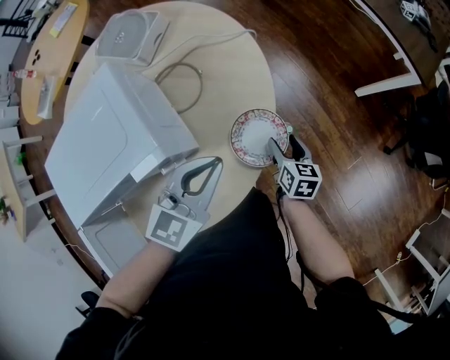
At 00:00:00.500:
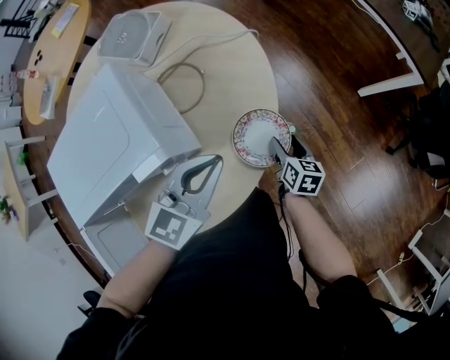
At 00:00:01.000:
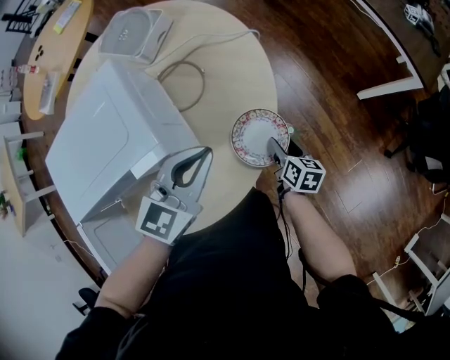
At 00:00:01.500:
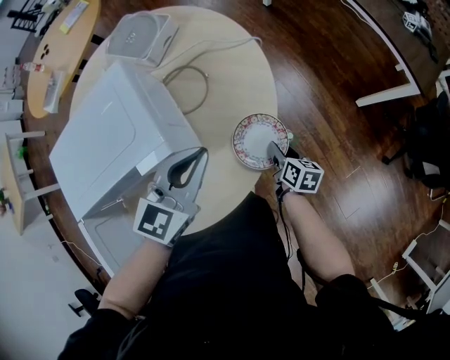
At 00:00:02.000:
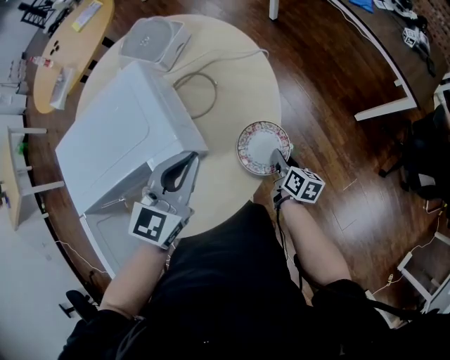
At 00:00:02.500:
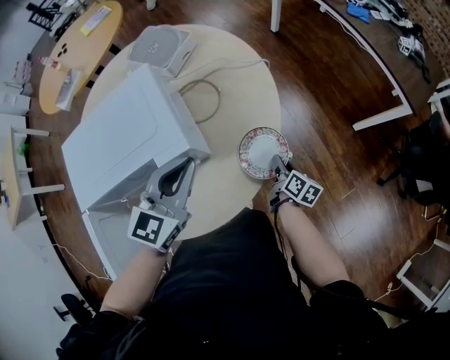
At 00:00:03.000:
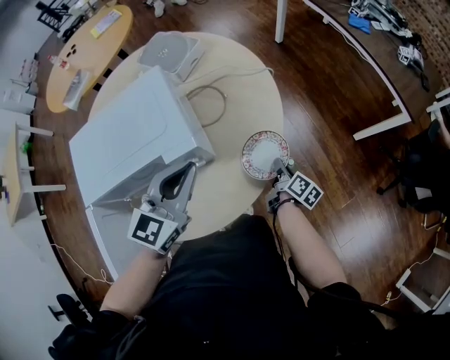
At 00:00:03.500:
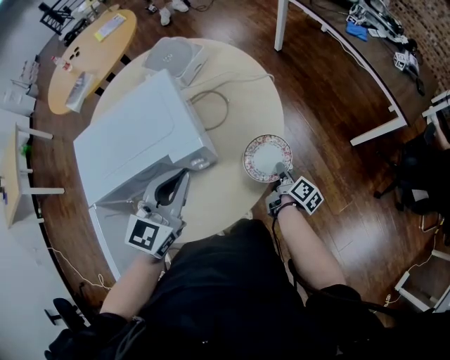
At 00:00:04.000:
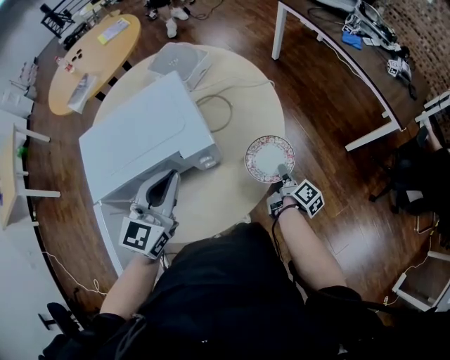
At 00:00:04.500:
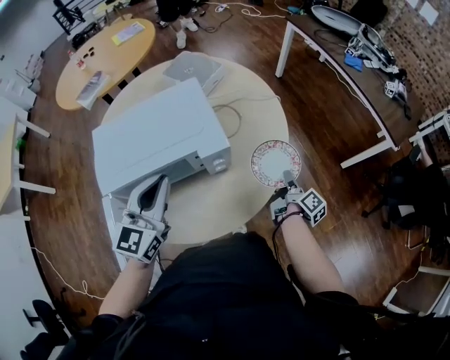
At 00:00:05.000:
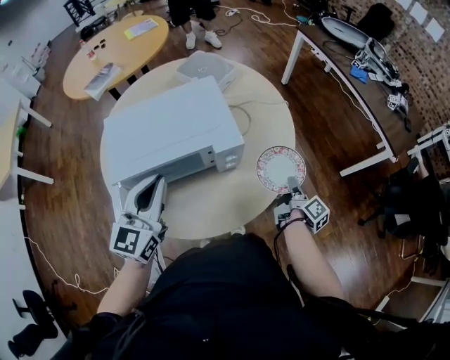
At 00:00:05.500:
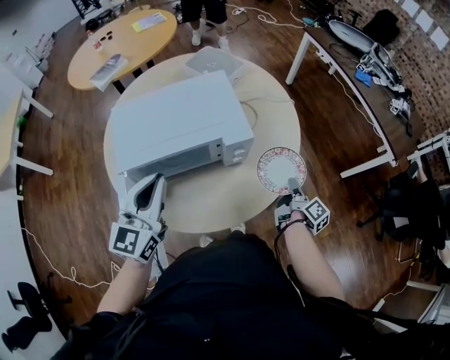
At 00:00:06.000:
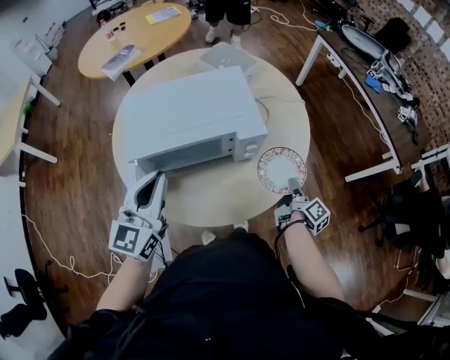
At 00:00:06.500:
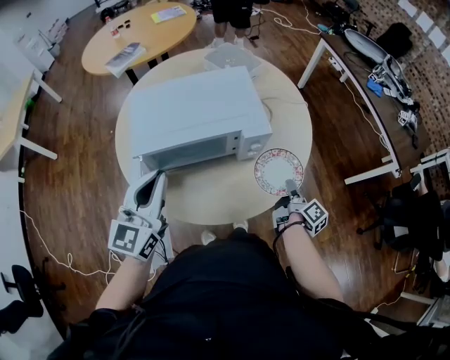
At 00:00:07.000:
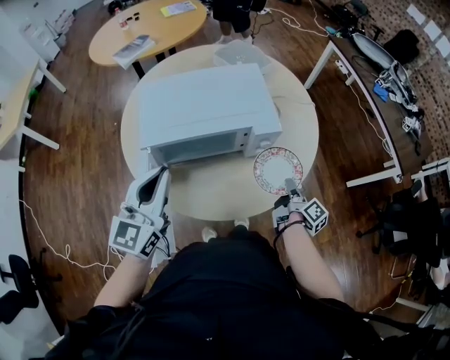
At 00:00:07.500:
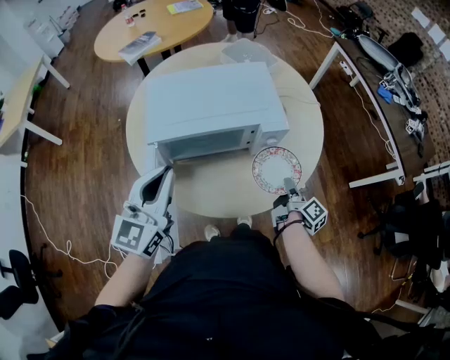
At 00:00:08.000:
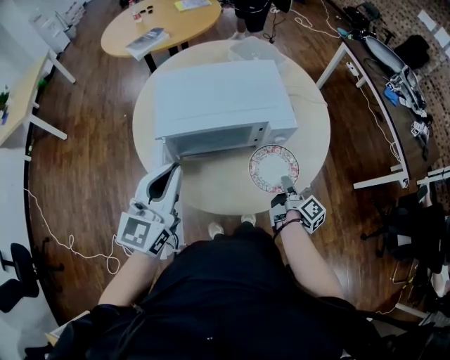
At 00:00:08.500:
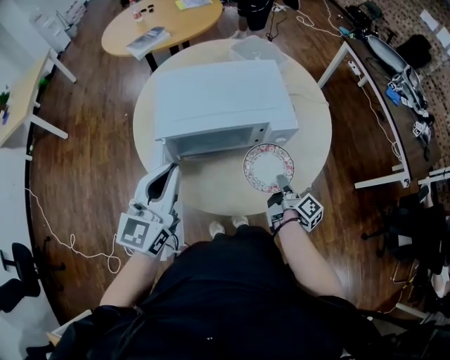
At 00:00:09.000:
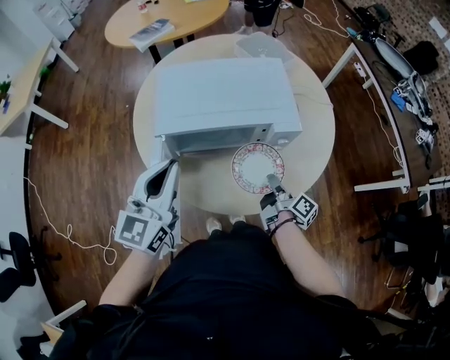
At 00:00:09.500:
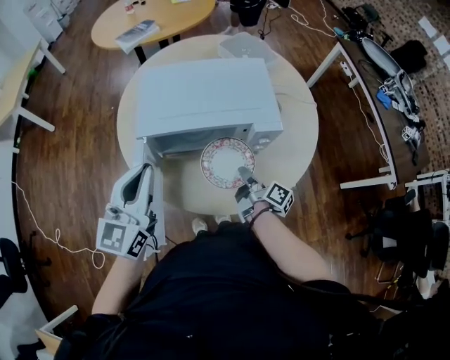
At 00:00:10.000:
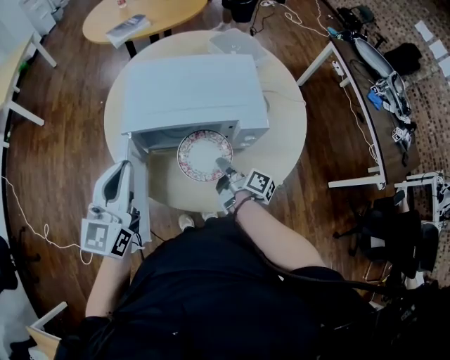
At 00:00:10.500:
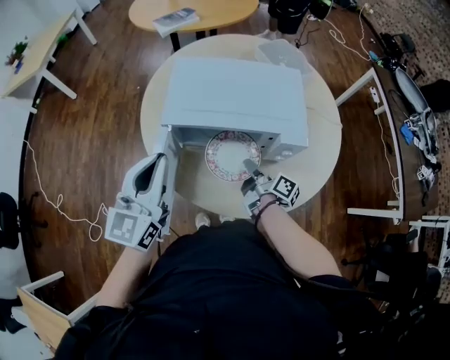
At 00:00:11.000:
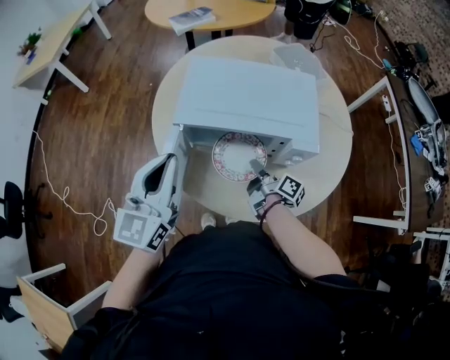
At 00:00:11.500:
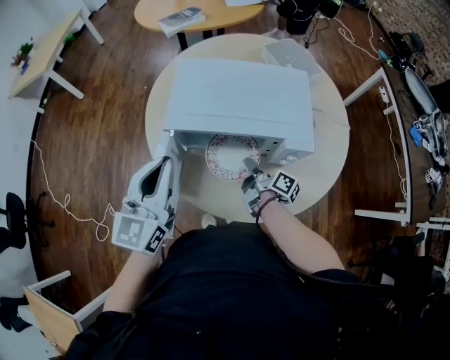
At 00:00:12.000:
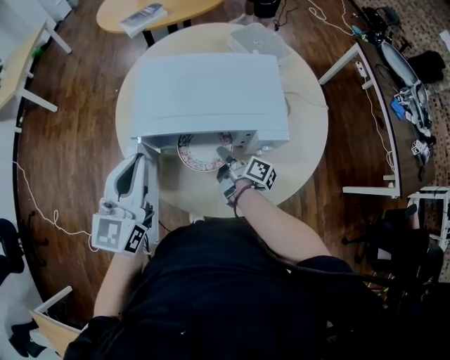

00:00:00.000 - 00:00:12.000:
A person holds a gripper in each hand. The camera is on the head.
00:00:00.000 - 00:00:02.000: The left gripper moves to the left, some 5 cm. The right gripper closes up.
00:00:02.000 - 00:00:04.000: The right gripper changes its angle by about 30 degrees; the left gripper goes approximately 10 cm to the left and backward.
00:00:04.000 - 00:00:06.000: The left gripper moves to the left and backward, some 15 cm. Meanwhile the right gripper shifts about 10 cm upward, to the left and backward.
00:00:06.000 - 00:00:08.000: The right gripper moves to the left, approximately 10 cm.
00:00:08.000 - 00:00:10.000: The right gripper shifts about 15 cm to the left and forward, and changes its angle by some 30 degrees.
00:00:10.000 - 00:00:12.000: The right gripper moves forward, approximately 5 cm.

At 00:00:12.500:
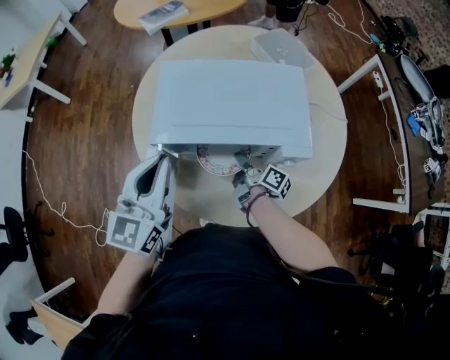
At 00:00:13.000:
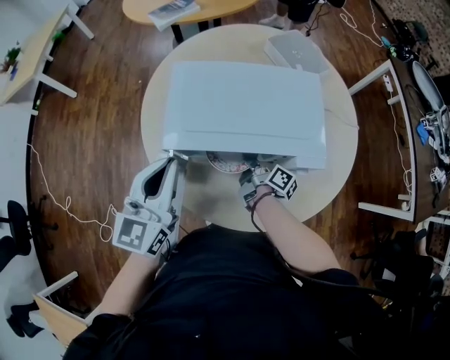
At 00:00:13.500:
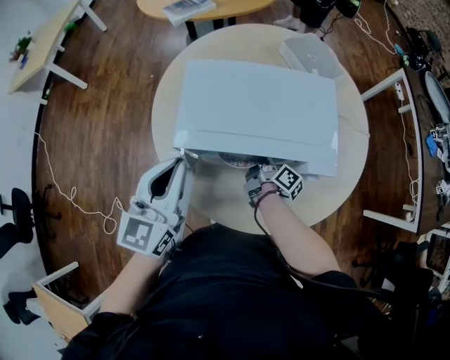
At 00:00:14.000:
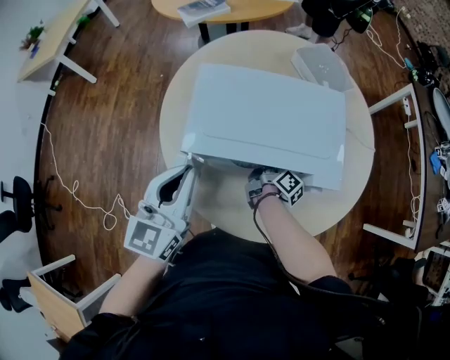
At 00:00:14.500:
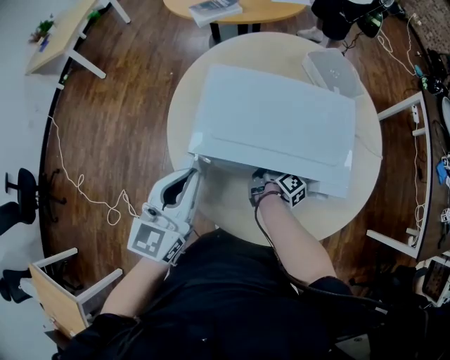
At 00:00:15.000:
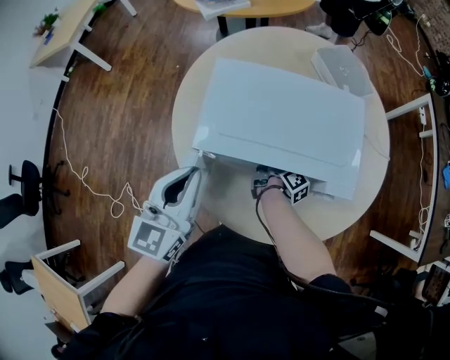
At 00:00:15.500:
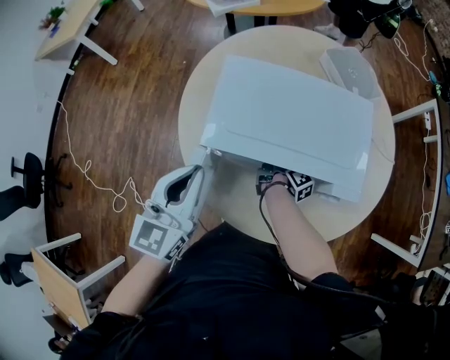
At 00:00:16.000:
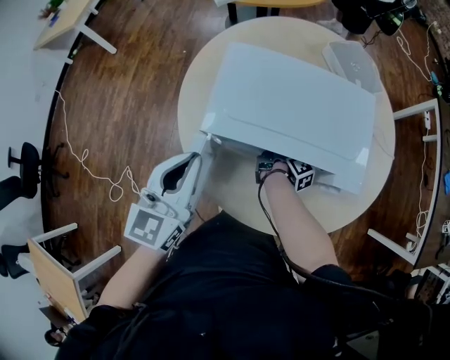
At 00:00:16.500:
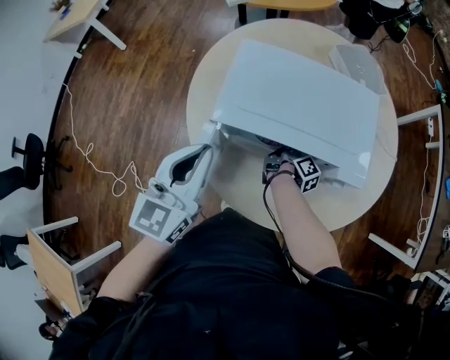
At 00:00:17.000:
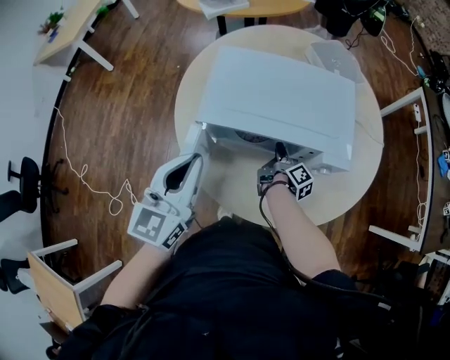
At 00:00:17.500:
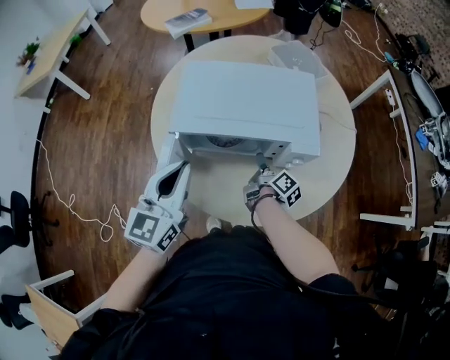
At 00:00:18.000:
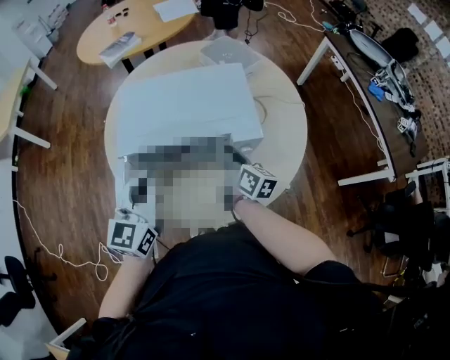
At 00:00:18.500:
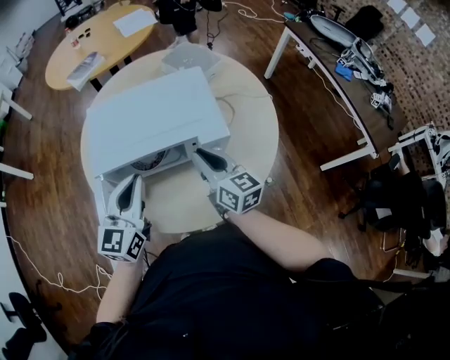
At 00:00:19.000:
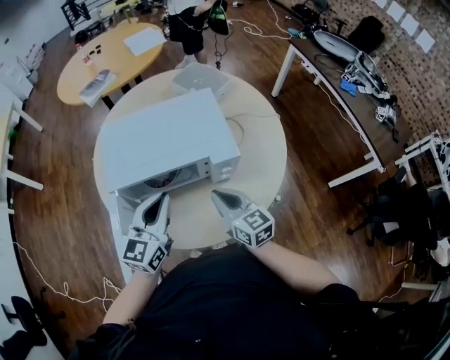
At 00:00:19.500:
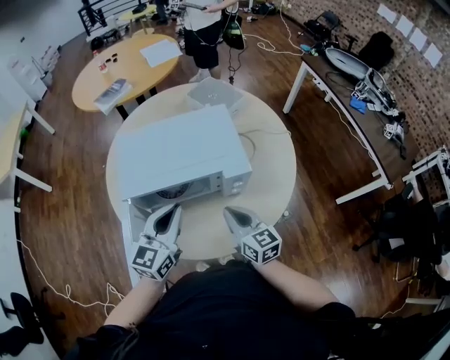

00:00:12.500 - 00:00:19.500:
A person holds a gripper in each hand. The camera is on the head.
00:00:12.500 - 00:00:14.500: The right gripper travels forward by about 5 cm.
00:00:14.500 - 00:00:16.000: The grippers make only small movements.
00:00:16.000 - 00:00:17.500: The right gripper moves backward, to the right and upward, some 10 cm; the left gripper moves roughly 5 cm.
00:00:17.500 - 00:00:19.500: The left gripper shifts roughly 10 cm to the right. Meanwhile the right gripper is displaced upward and backward by roughly 15 cm, rolls counterclockwise, seen from behind, by some 60 degrees, and closes up.

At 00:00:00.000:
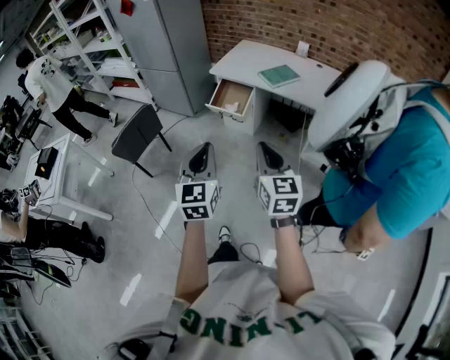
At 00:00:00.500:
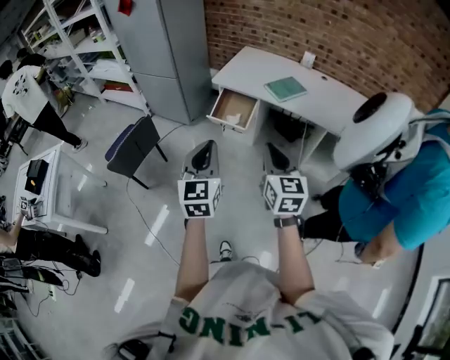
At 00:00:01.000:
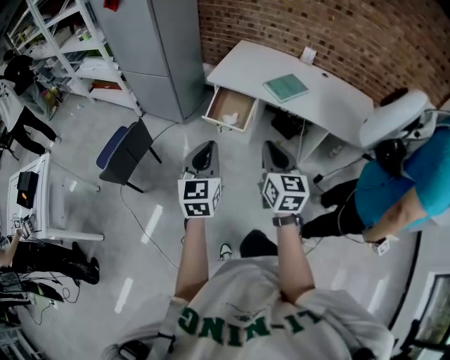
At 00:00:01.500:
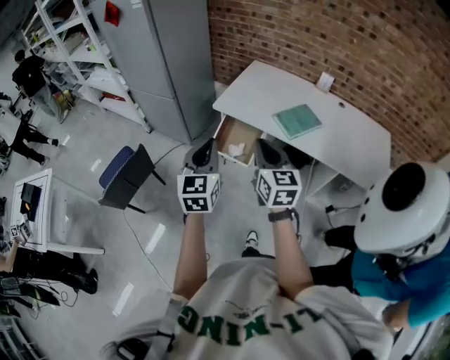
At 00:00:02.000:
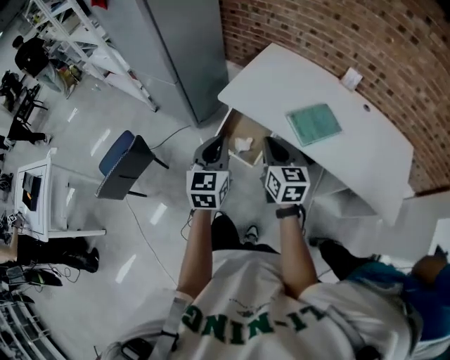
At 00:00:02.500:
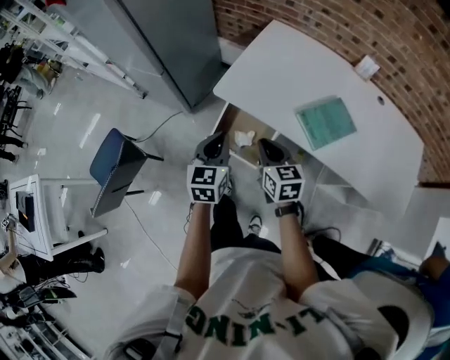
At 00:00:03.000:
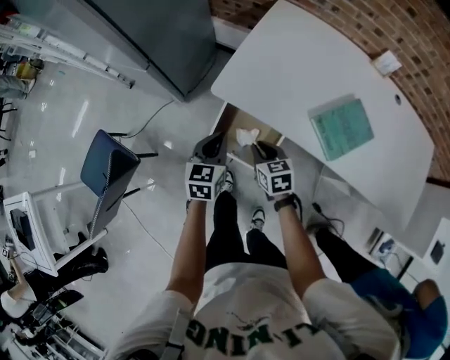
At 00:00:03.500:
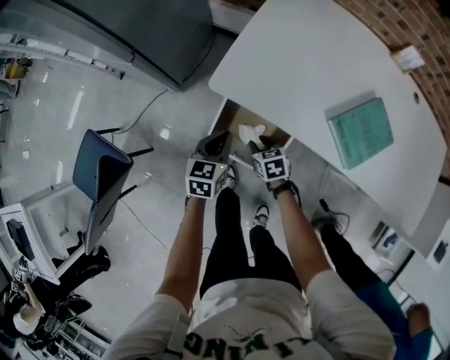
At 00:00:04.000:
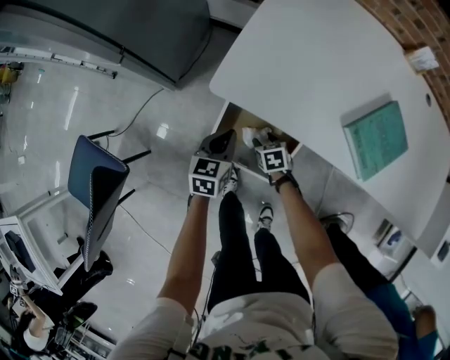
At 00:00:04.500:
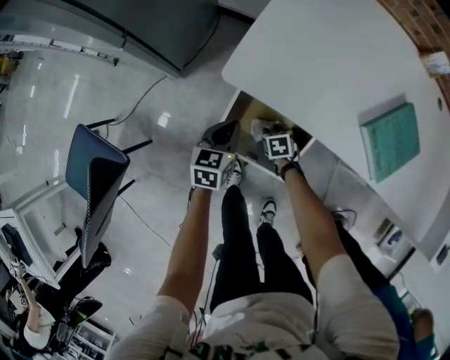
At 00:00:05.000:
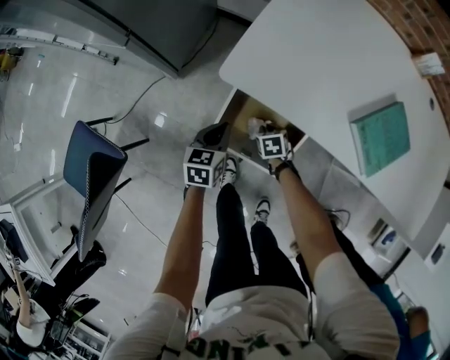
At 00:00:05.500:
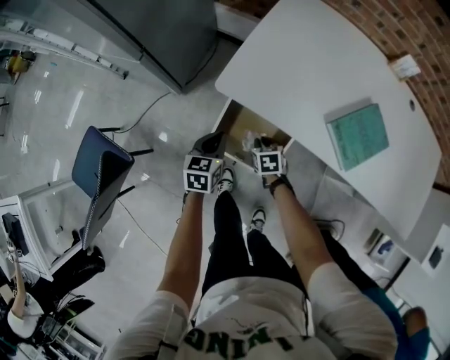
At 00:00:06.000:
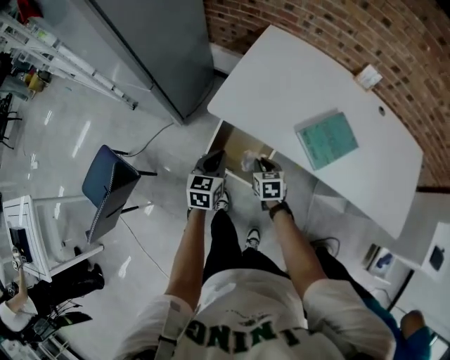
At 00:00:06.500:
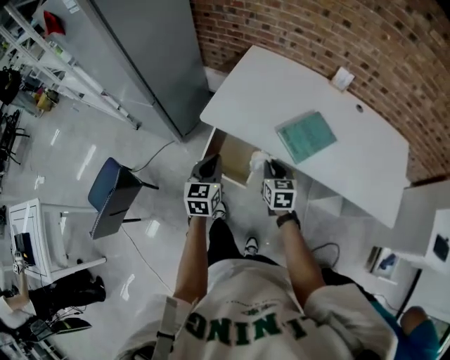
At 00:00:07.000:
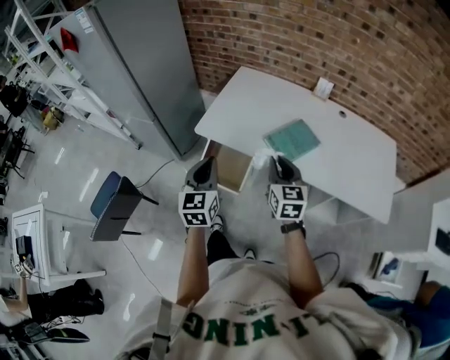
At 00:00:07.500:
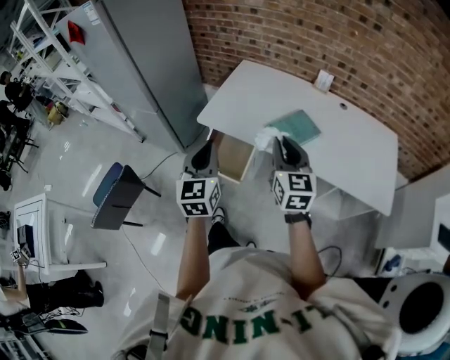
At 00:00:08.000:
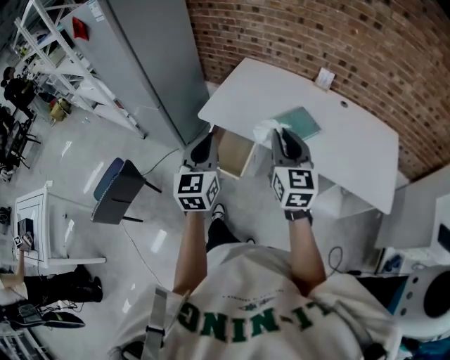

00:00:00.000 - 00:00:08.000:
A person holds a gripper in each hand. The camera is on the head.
00:00:00.000 - 00:00:02.000: The two grippers travel together, forward, some 60 cm.
00:00:02.000 - 00:00:04.000: Both grippers move downward and forward, roughly 50 cm. The right gripper tilts its fingers roughly 50 degrees downward, and opens up. The left gripper rotates some 30 degrees.
00:00:04.000 - 00:00:06.000: The two grippers go some 20 cm upward. The right gripper closes.
00:00:06.000 - 00:00:08.000: The right gripper moves upward, some 40 cm, and tips its fingers upward by about 50 degrees. The left gripper moves upward and backward, some 35 cm, and swivels some 30 degrees.
